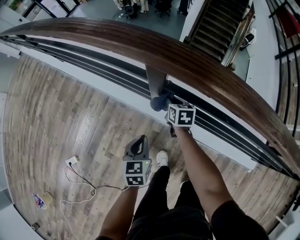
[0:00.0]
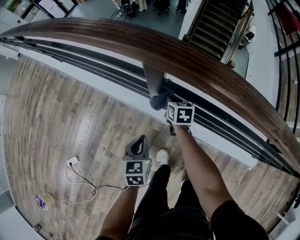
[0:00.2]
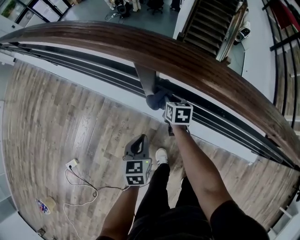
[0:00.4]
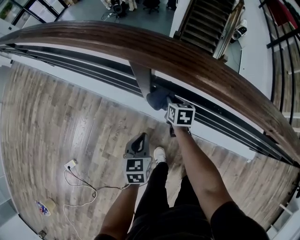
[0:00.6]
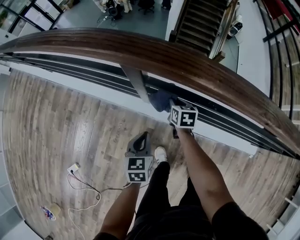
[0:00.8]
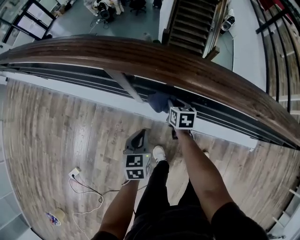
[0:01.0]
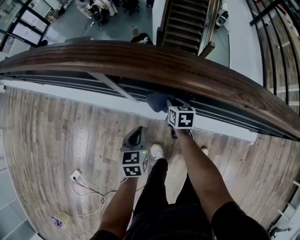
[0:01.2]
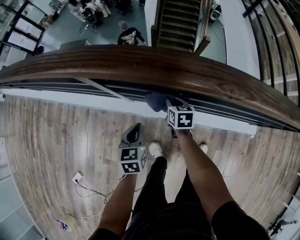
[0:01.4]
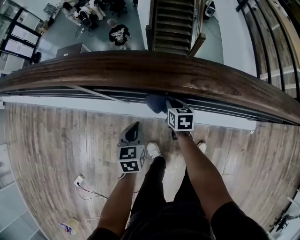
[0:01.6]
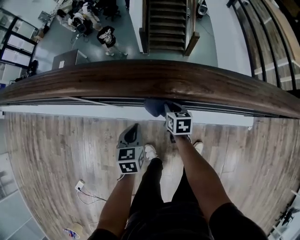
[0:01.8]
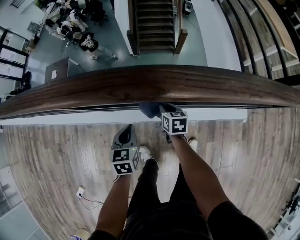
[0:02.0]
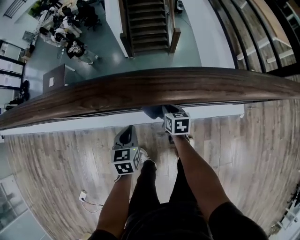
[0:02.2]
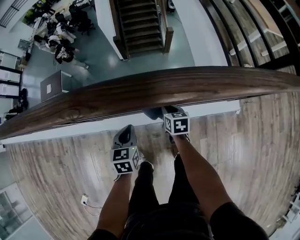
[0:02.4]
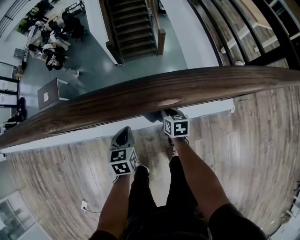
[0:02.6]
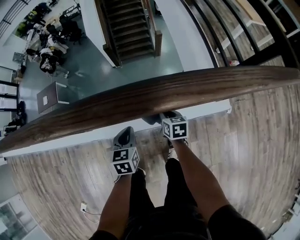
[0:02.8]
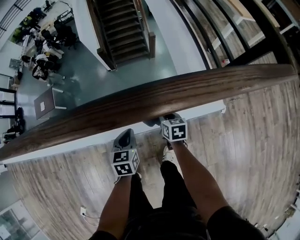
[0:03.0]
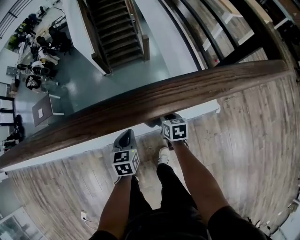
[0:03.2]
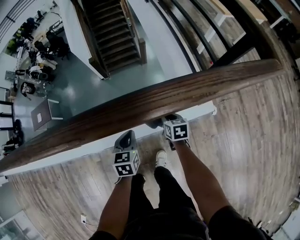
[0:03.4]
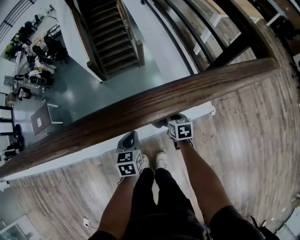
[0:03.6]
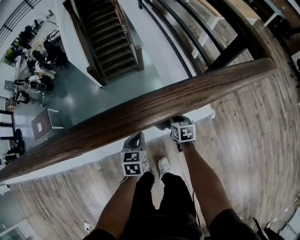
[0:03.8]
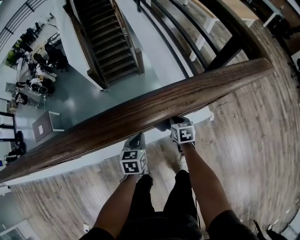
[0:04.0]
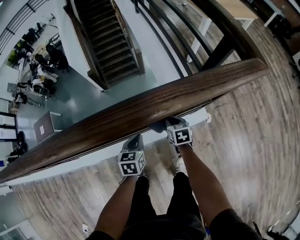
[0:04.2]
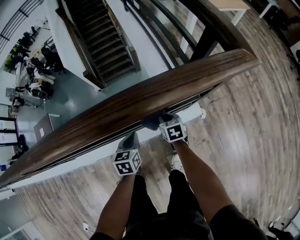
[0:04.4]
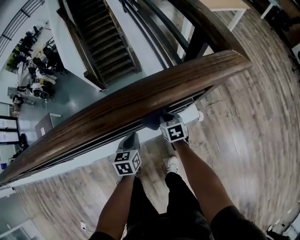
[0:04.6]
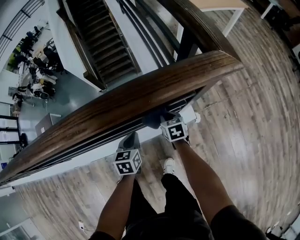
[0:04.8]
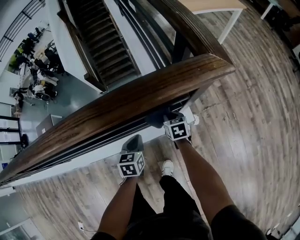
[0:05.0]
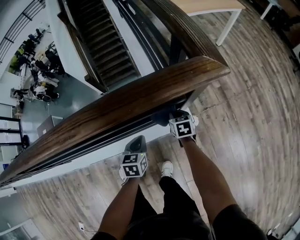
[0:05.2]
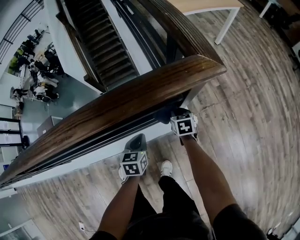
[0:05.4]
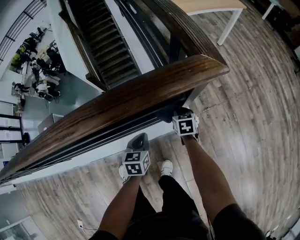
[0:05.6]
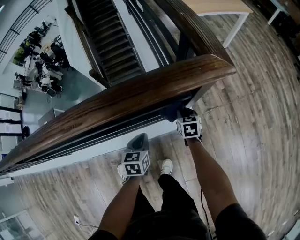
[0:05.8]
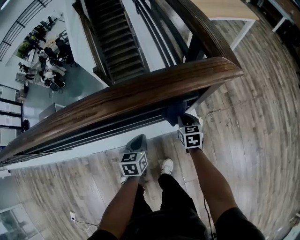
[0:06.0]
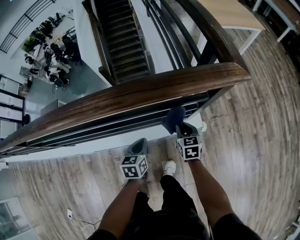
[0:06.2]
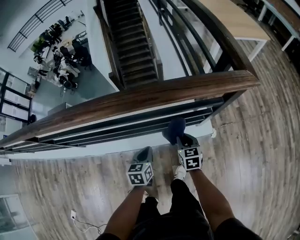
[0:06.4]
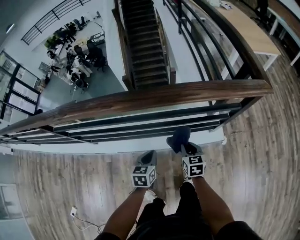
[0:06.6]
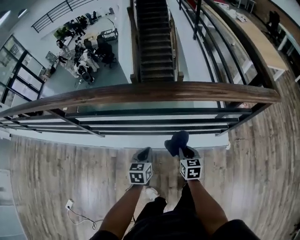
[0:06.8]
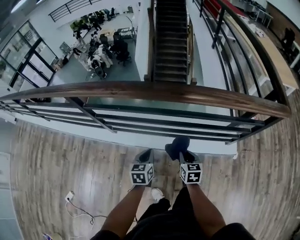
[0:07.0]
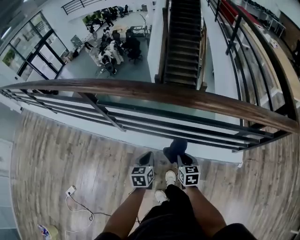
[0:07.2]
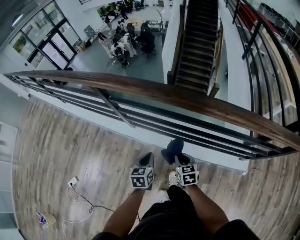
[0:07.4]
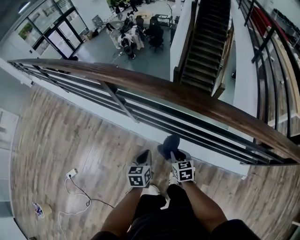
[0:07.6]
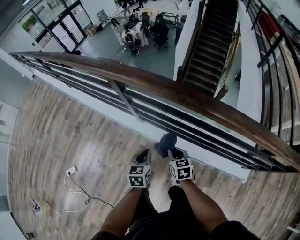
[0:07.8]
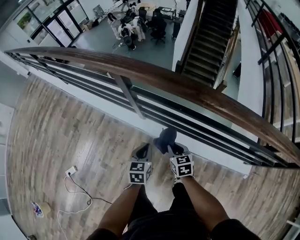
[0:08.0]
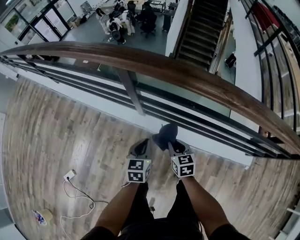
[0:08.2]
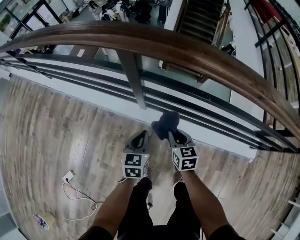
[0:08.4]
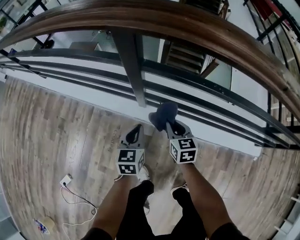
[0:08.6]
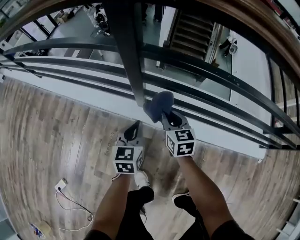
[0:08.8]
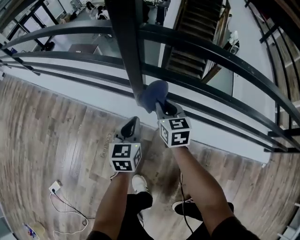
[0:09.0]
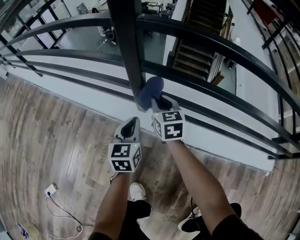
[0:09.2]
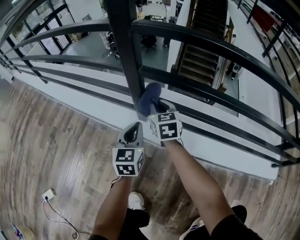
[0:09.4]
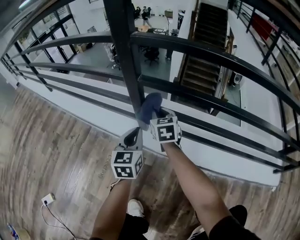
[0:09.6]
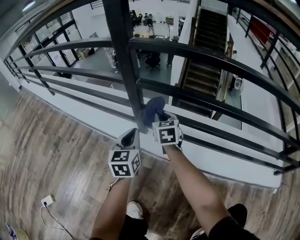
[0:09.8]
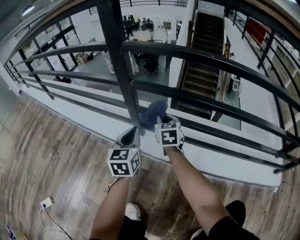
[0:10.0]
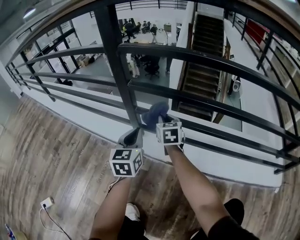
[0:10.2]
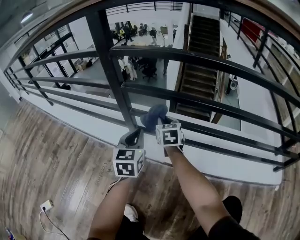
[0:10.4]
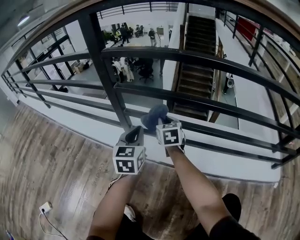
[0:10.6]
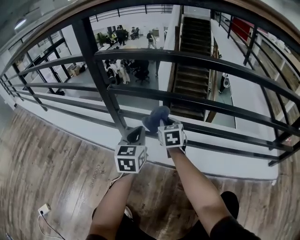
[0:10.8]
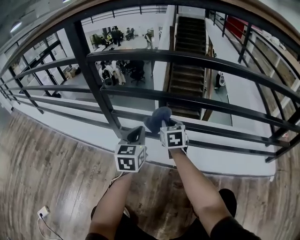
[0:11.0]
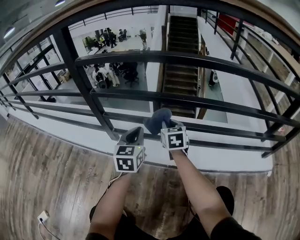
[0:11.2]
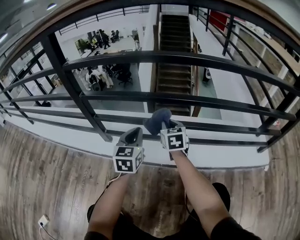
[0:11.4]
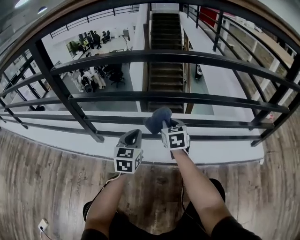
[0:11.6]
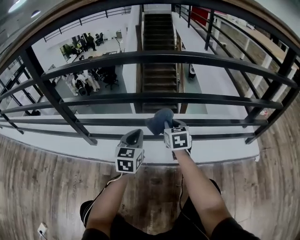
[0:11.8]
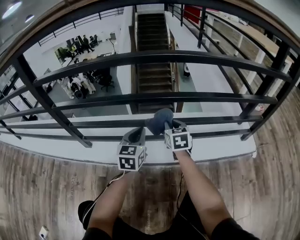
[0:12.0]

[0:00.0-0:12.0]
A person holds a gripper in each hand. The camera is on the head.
0:00.0 to 0:01.6: The right gripper shifts about 30 cm to the right and backward, while the left gripper is displaced to the right by some 20 cm.
0:01.6 to 0:03.0: Both grippers are carried to the right, roughly 50 cm.
0:03.0 to 0:04.4: Both grippers move to the right, approximately 30 cm.
0:04.4 to 0:06.0: The two grippers go some 15 cm to the right.
0:06.0 to 0:07.6: The two grippers travel together, approximately 80 cm. The left gripper rotates some 40 degrees; the right gripper swivels roughly 40 degrees.
0:07.6 to 0:09.0: The left gripper heads downward, to the left and forward, covering roughly 40 cm. Meanwhile the right gripper heads to the left, forward and downward, covering about 50 cm.
0:09.0 to 0:10.4: The left gripper travels to the right by some 10 cm, while the right gripper goes roughly 15 cm to the right and downward.
0:10.4 to 0:12.0: Both grippers travel together to the right, about 40 cm. The left gripper changes its angle by some 20 degrees.

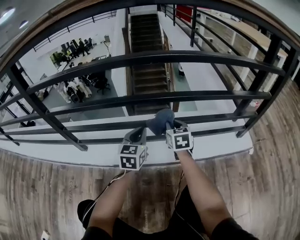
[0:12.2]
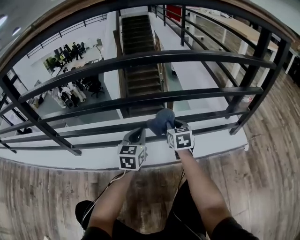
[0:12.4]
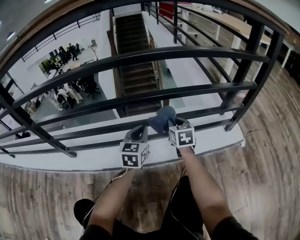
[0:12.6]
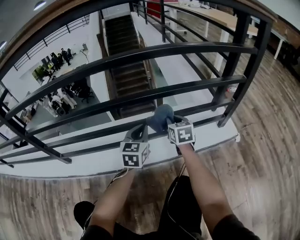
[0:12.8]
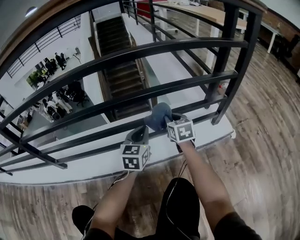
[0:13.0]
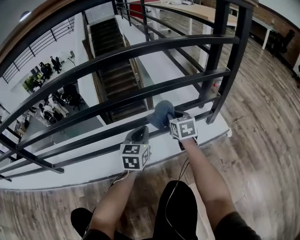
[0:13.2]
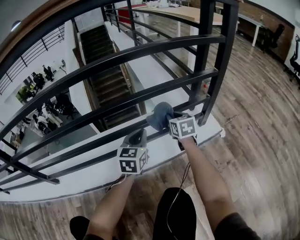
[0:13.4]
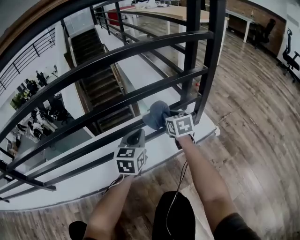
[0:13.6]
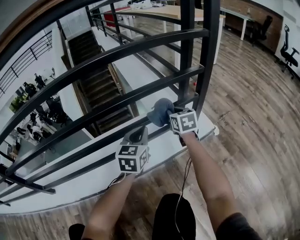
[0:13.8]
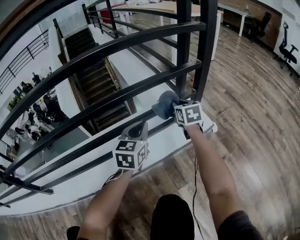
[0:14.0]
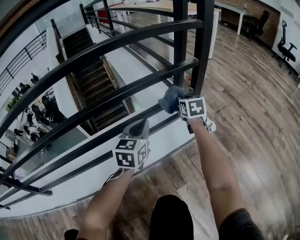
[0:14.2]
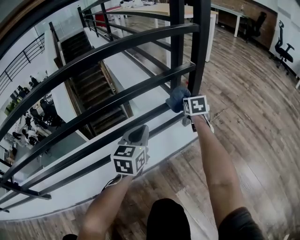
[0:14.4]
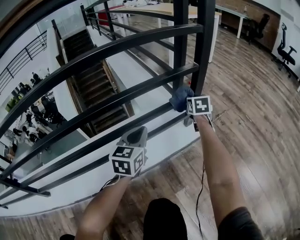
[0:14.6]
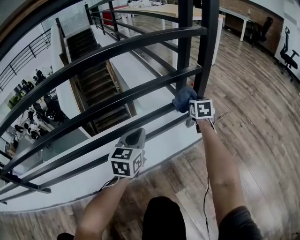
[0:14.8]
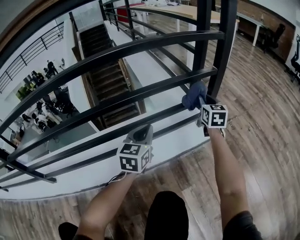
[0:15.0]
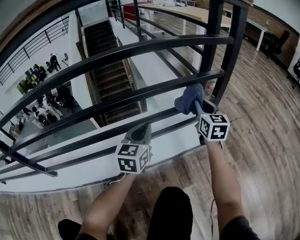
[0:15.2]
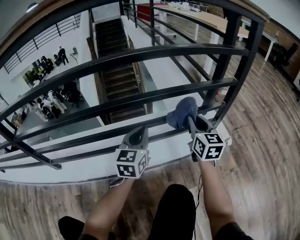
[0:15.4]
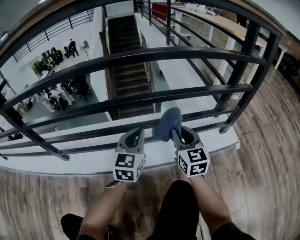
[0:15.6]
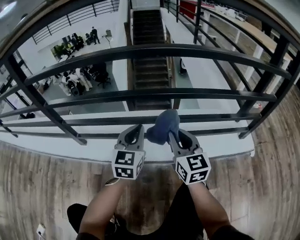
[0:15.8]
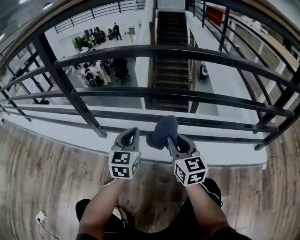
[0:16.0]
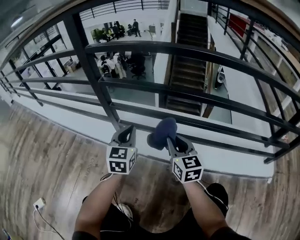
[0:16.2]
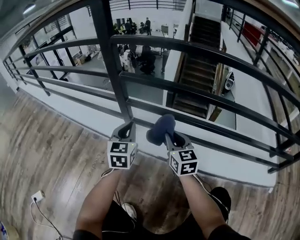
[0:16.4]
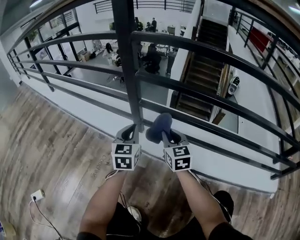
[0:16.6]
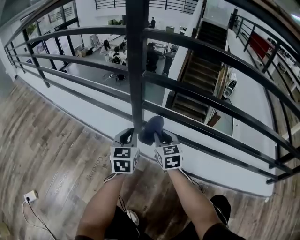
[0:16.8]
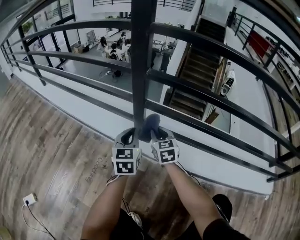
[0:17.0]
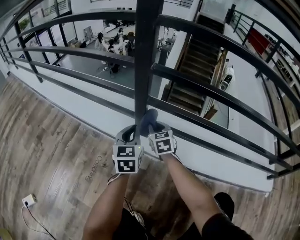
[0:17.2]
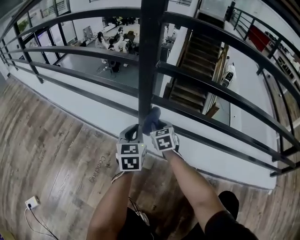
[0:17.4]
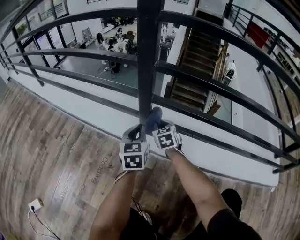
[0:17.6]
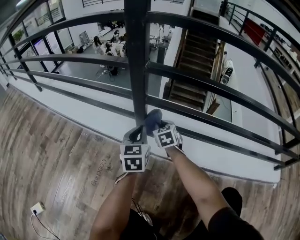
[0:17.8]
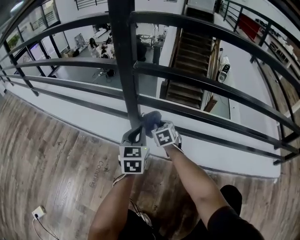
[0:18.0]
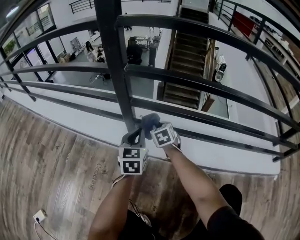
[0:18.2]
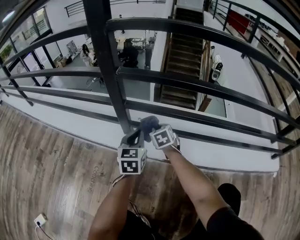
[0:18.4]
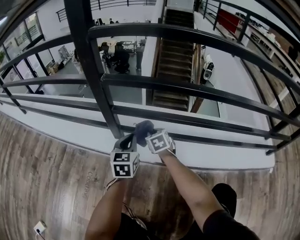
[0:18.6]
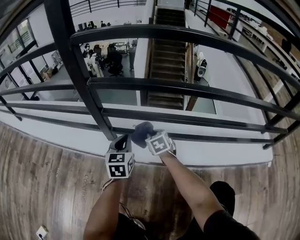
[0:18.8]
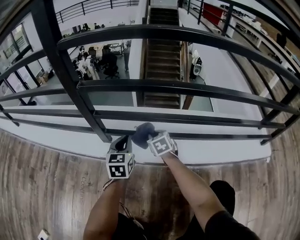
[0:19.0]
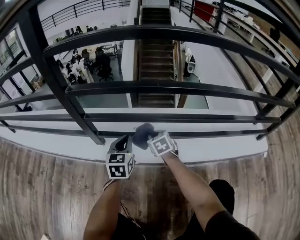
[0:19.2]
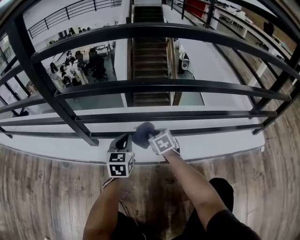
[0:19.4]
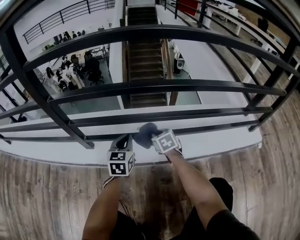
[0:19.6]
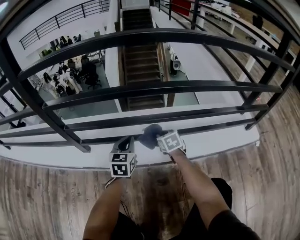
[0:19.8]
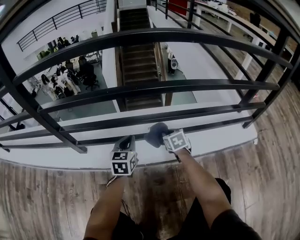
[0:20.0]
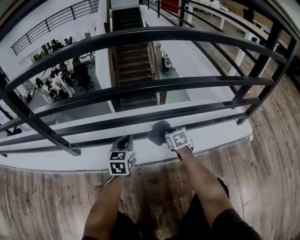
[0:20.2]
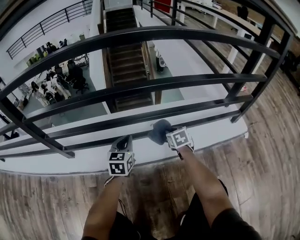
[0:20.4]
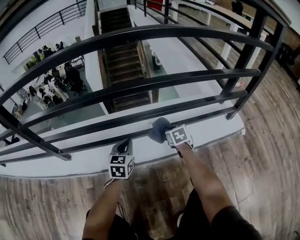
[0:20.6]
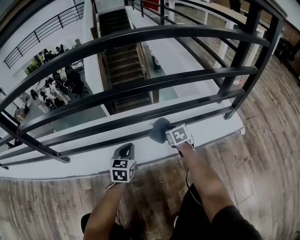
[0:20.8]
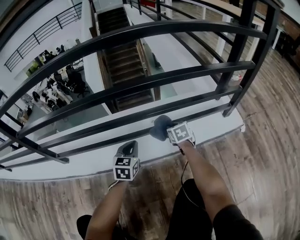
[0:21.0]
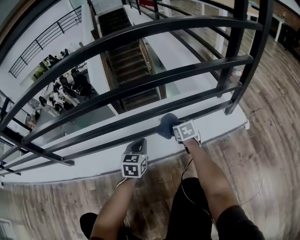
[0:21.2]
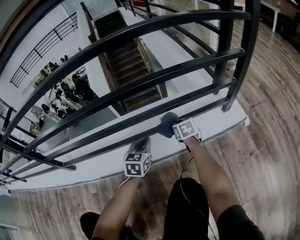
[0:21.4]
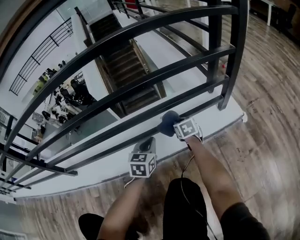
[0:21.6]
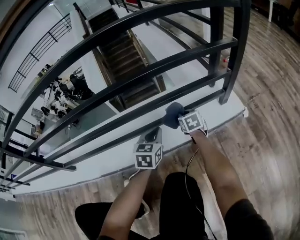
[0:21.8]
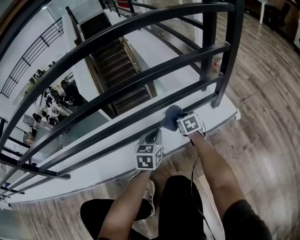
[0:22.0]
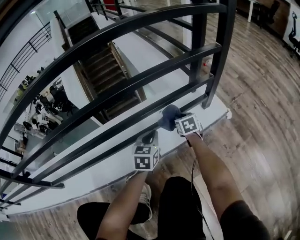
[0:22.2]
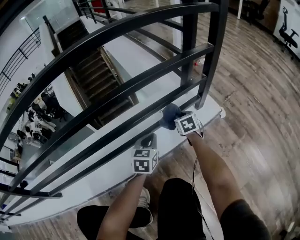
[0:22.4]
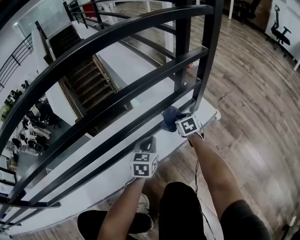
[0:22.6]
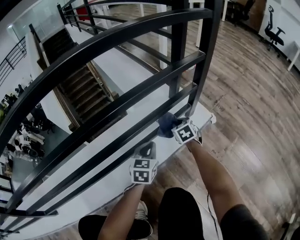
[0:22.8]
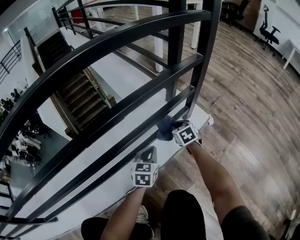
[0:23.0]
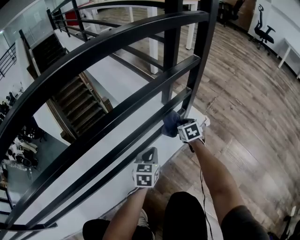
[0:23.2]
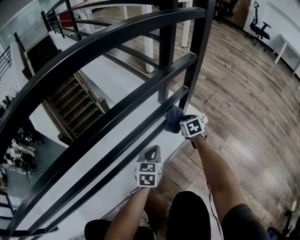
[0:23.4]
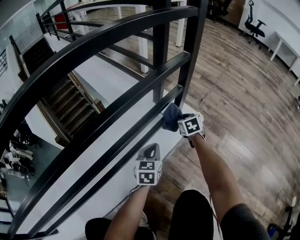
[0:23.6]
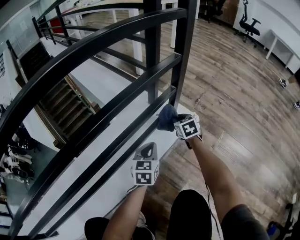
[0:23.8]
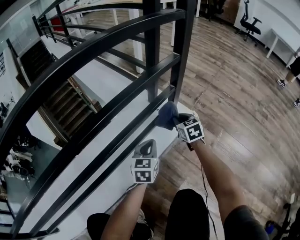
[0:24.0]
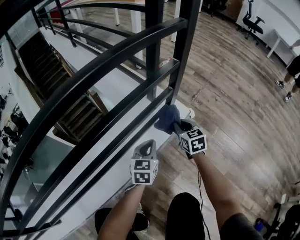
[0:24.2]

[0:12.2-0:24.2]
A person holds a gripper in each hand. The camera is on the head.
0:12.2 to 0:13.8: The two grippers go about 40 cm to the right. The left gripper rotates roughly 20 degrees.
0:13.8 to 0:15.2: The right gripper is displaced upward by some 10 cm, and travels to the right and back again, about 15 cm each way. Meanwhile the left gripper heads to the left, covering roughly 5 cm.
0:15.2 to 0:16.6: The two grippers travel together, some 80 cm. The left gripper changes its angle by approximately 50 degrees. Meanwhile the right gripper changes its angle by some 50 degrees.
0:16.6 to 0:18.2: The right gripper heads downward and forward, covering about 20 cm, and turns by about 30 degrees. Meanwhile the left gripper goes some 10 cm downward.
0:18.2 to 0:19.8: The two grippers go roughly 30 cm to the right.
0:19.8 to 0:21.2: Both grippers move to the right, approximately 35 cm.
0:21.2 to 0:22.6: The left gripper heads to the right and forward, covering approximately 25 cm, and rotates approximately 20 degrees. Meanwhile the right gripper is displaced to the right by roughly 25 cm.
0:22.6 to 0:24.2: The right gripper shifts about 20 cm upward and to the right; the left gripper is displaced to the right and upward by roughly 10 cm.
